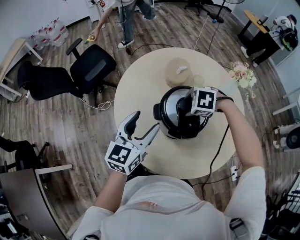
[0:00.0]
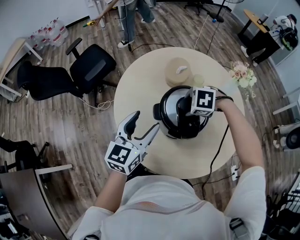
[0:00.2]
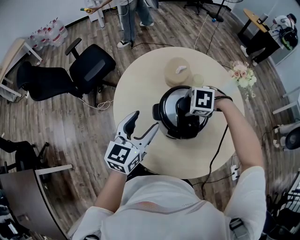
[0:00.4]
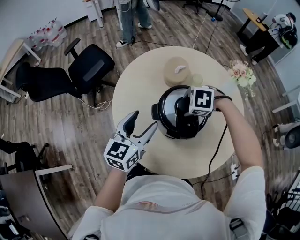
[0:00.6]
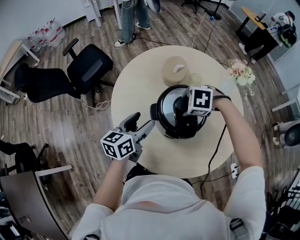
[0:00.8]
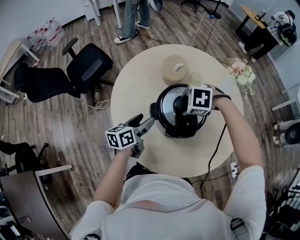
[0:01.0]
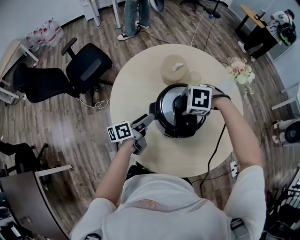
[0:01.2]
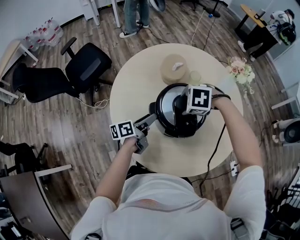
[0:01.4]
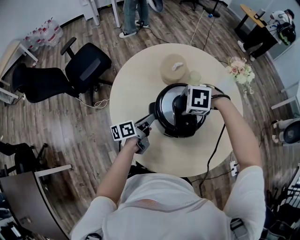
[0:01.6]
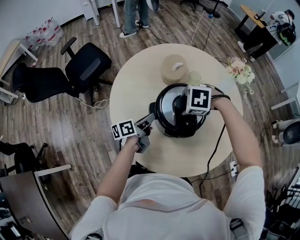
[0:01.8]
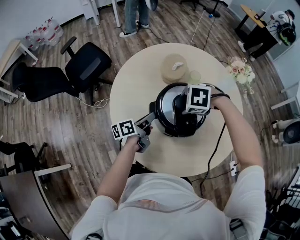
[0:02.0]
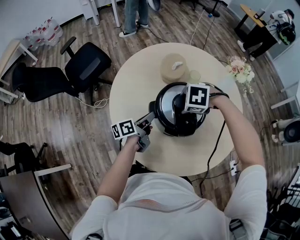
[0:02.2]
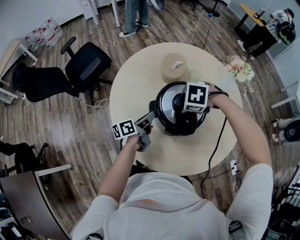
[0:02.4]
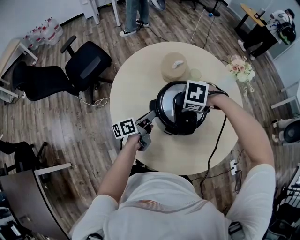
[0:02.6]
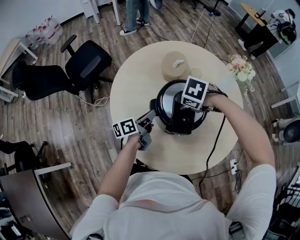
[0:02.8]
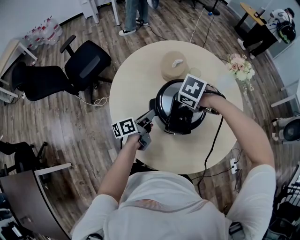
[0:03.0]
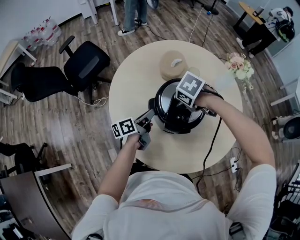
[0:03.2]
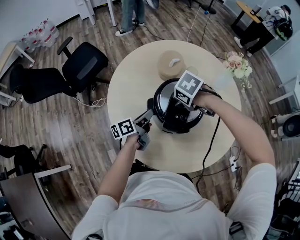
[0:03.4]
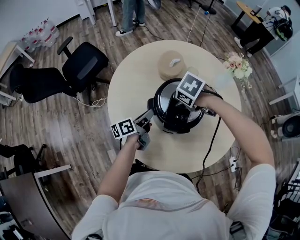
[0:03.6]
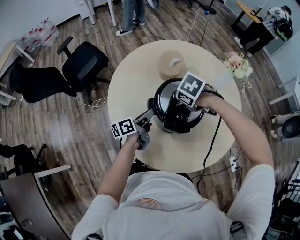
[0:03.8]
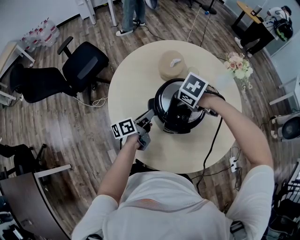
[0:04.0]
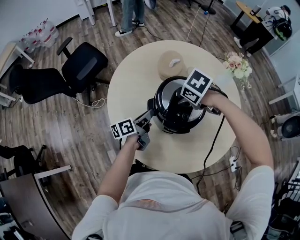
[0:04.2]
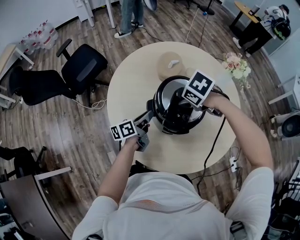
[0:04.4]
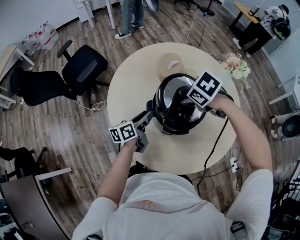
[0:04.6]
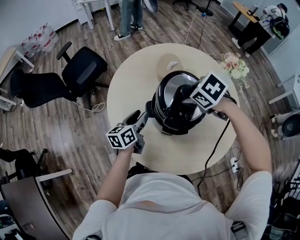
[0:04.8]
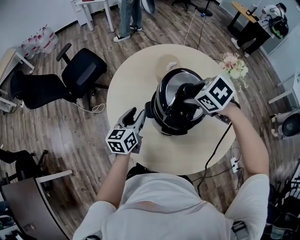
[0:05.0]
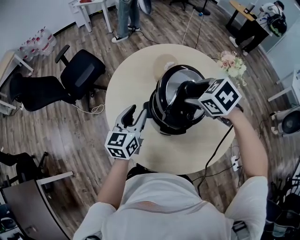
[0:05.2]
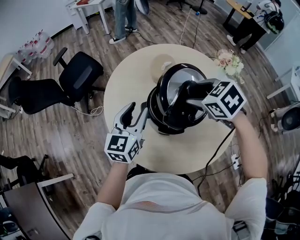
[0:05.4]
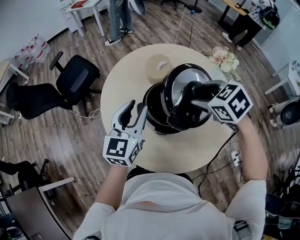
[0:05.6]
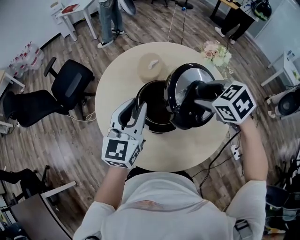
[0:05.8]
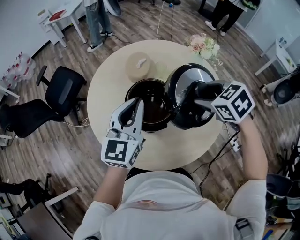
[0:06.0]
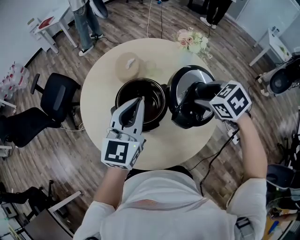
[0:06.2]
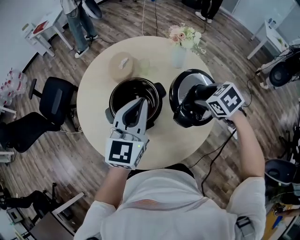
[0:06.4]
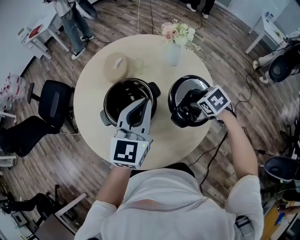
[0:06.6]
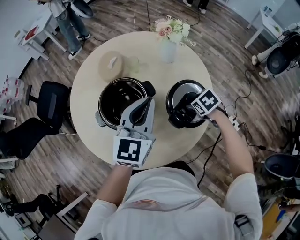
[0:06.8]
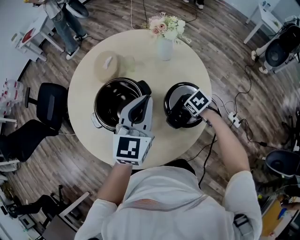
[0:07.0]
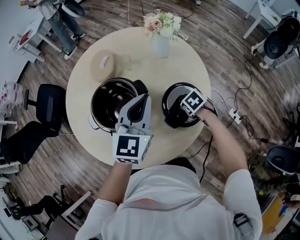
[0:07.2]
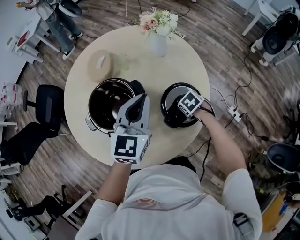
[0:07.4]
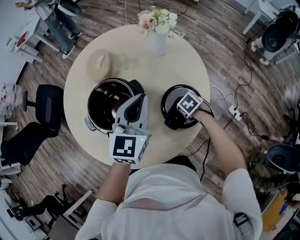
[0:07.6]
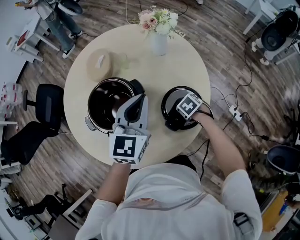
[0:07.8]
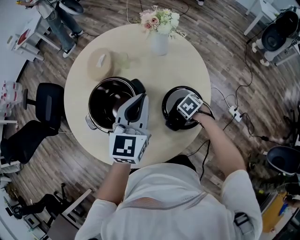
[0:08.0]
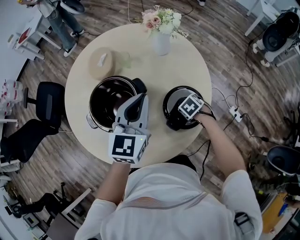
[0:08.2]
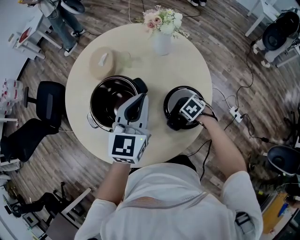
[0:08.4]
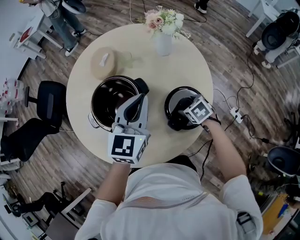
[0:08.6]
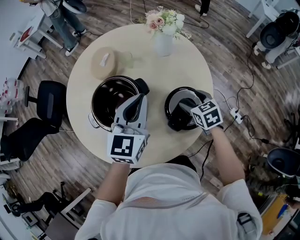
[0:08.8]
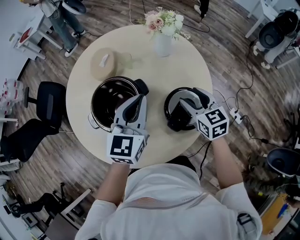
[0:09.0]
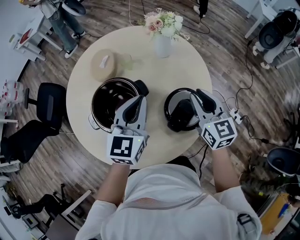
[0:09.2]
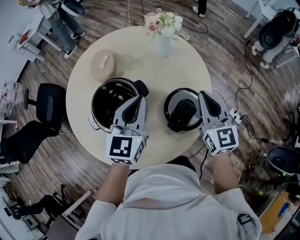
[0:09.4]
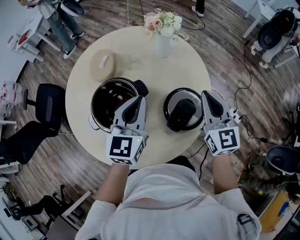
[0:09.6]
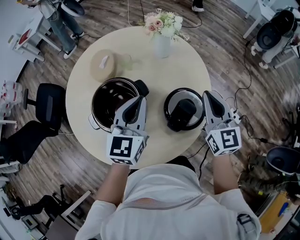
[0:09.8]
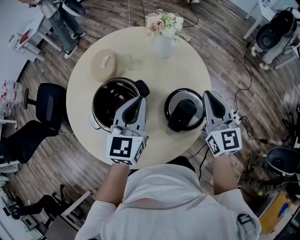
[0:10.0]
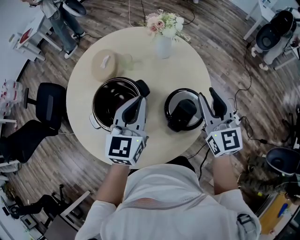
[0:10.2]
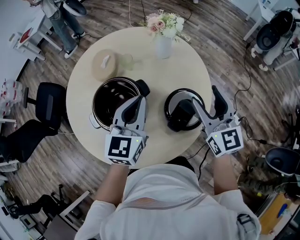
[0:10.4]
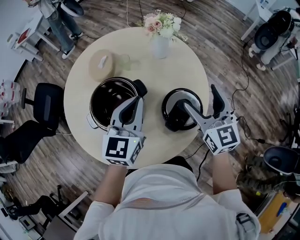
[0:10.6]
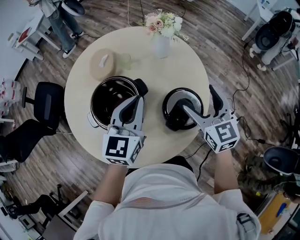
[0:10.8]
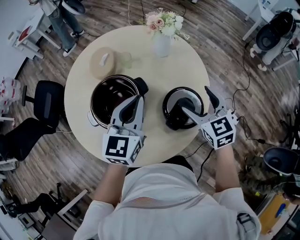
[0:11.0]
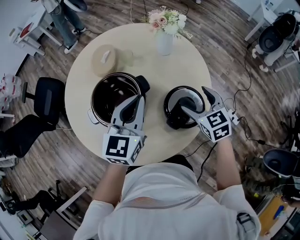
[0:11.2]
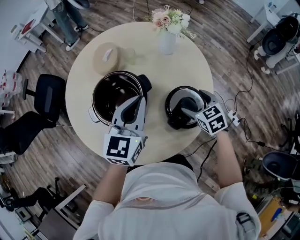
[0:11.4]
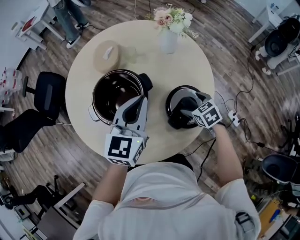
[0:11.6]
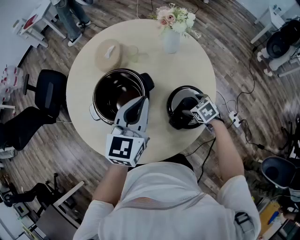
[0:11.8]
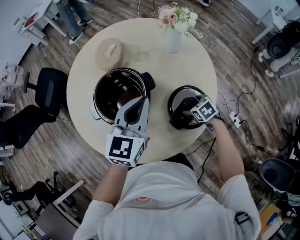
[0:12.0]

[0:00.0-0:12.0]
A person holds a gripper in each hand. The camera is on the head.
0:00.0 to 0:01.6: The left gripper shifts about 20 cm downward, rolls counterclockwise, seen from behind, by roughly 60 degrees, and closes up.
0:01.6 to 0:03.0: The right gripper changes its angle by about 20 degrees.
0:03.0 to 0:04.4: There are only small adjustments of the grippers.
0:04.4 to 0:06.0: The left gripper shifts approximately 25 cm upward, and rolls clockwise, seen from behind, by some 60 degrees, while the right gripper moves roughly 20 cm, and rotates some 30 degrees.
0:06.0 to 0:07.6: The left gripper moves about 25 cm. Meanwhile the right gripper heads downward, covering approximately 30 cm, and swivels roughly 30 degrees.
0:07.6 to 0:09.0: The right gripper moves upward, about 20 cm, and angles its fingers upward, by about 50 degrees.
0:09.0 to 0:10.4: The right gripper moves upward, roughly 15 cm, turns by roughly 30 degrees, and closes, then reopens.
0:10.4 to 0:12.0: The right gripper shifts about 30 cm downward, and points its fingers approximately 60 degrees further downward.

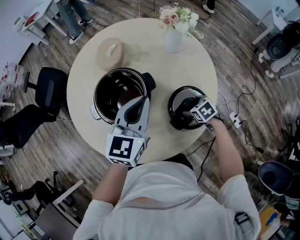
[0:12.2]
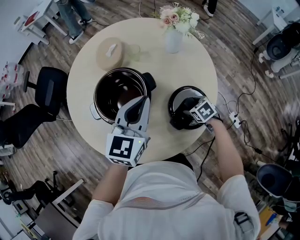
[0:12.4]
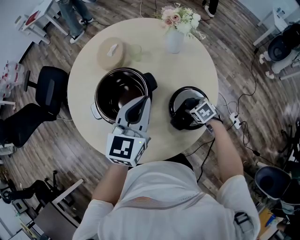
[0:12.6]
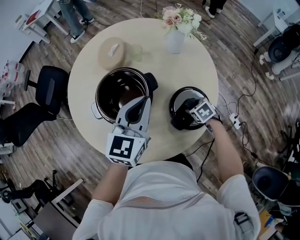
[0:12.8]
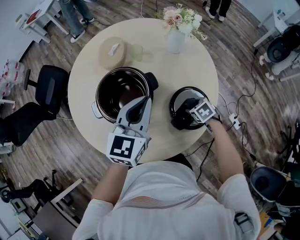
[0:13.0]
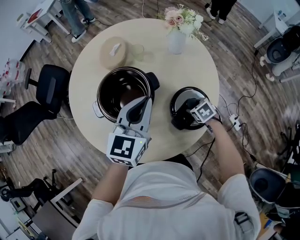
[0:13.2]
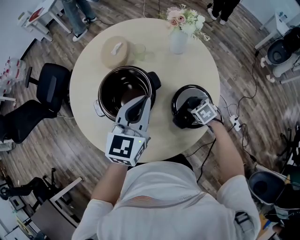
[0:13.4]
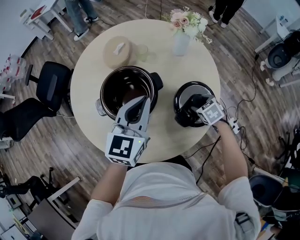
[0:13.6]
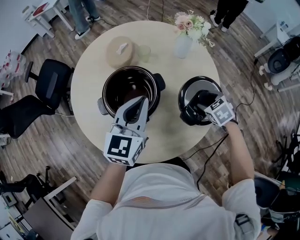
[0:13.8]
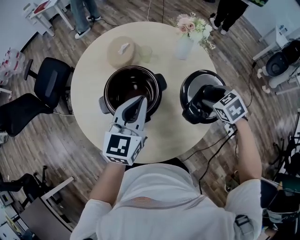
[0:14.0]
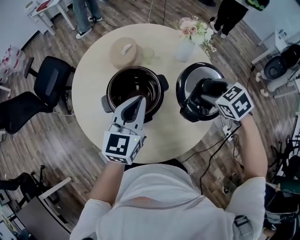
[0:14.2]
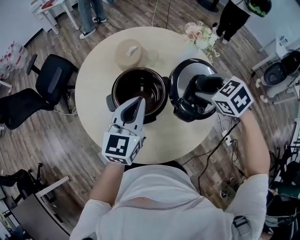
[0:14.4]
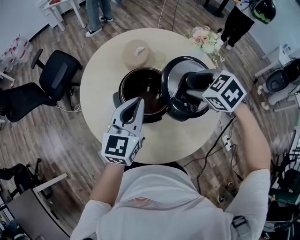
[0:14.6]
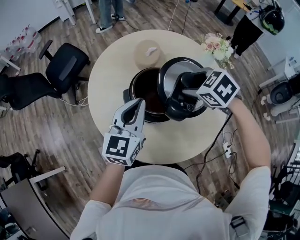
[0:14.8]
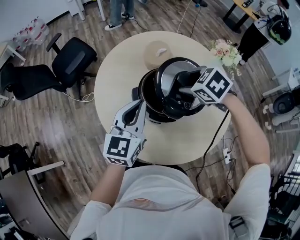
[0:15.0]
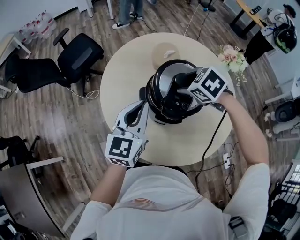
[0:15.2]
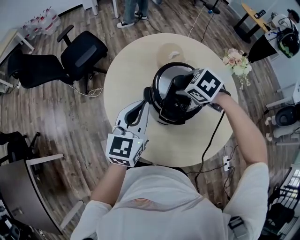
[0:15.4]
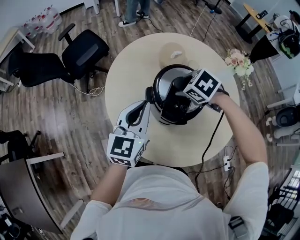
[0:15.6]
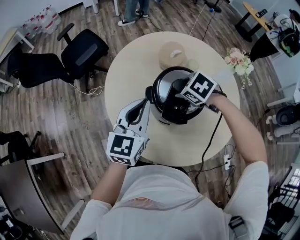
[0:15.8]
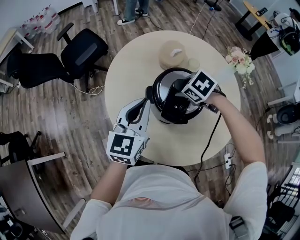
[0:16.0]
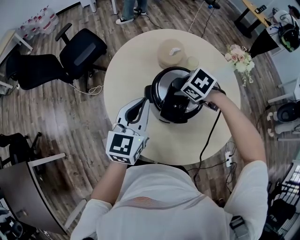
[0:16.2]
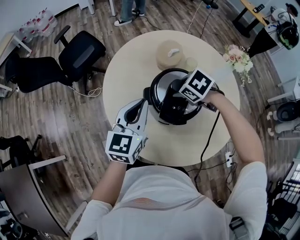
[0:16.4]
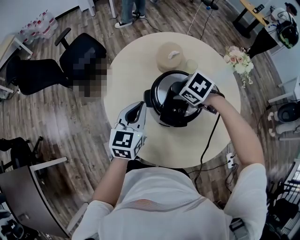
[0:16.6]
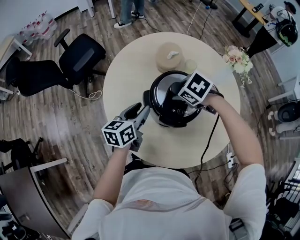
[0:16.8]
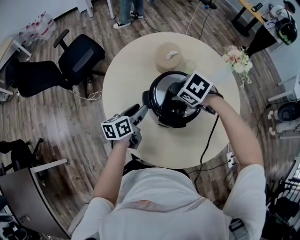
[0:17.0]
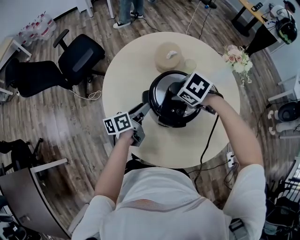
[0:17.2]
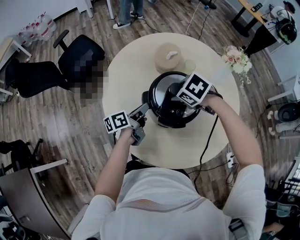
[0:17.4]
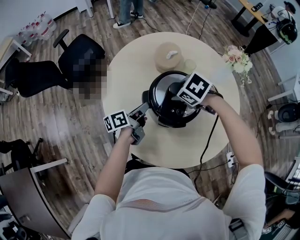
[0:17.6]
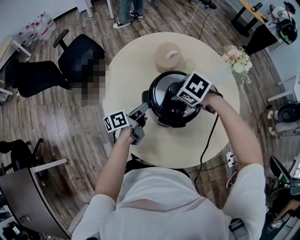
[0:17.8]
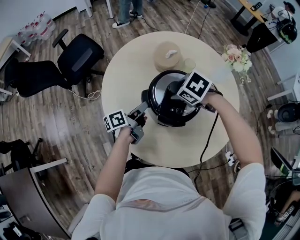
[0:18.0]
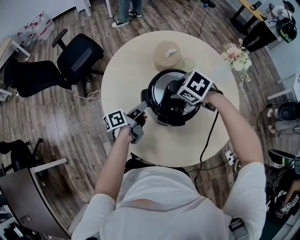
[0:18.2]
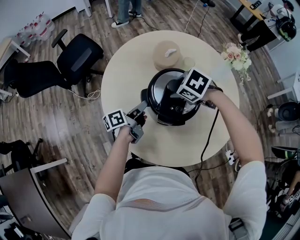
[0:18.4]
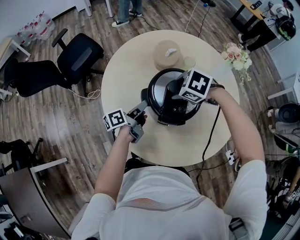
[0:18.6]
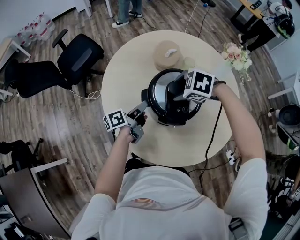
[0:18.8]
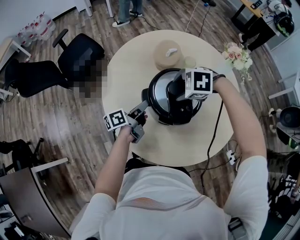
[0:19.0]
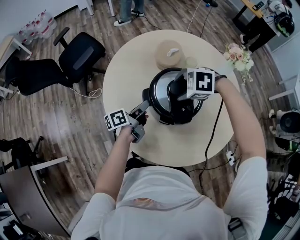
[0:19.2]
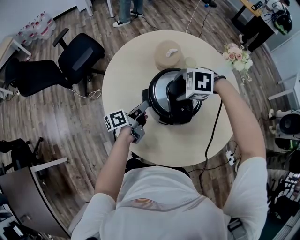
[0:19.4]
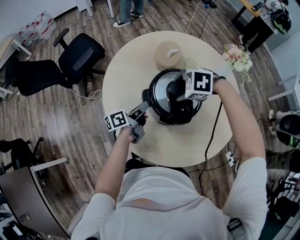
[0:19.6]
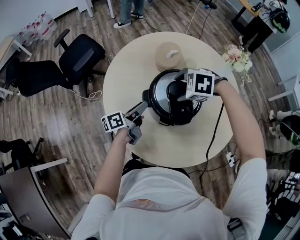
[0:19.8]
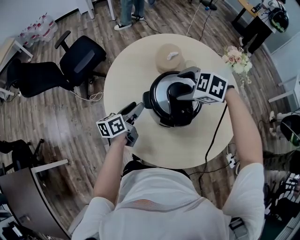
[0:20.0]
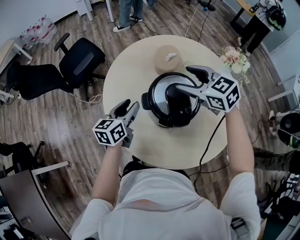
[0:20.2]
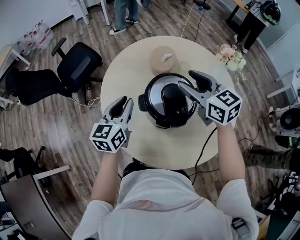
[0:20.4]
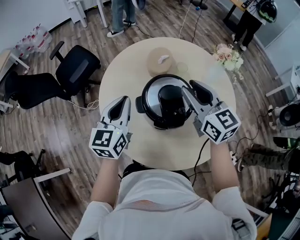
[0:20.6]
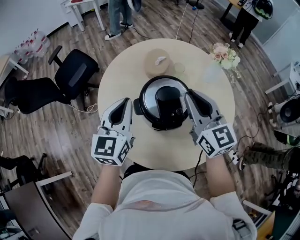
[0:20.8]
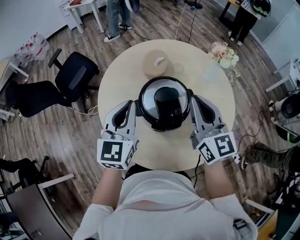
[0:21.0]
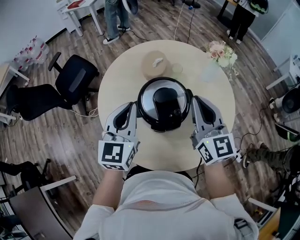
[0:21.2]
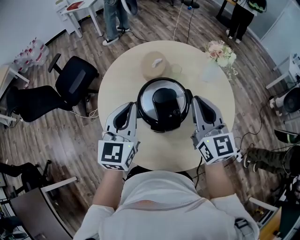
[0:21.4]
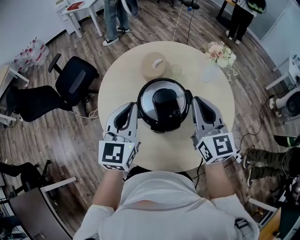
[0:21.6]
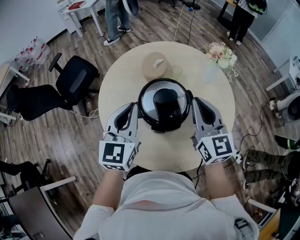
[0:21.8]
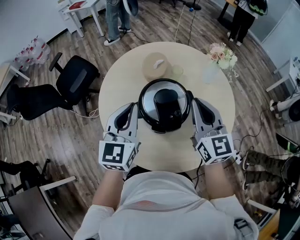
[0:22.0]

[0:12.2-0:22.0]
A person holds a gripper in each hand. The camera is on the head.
0:12.2 to 0:13.6: The right gripper is displaced upward by approximately 5 cm, and closes.
0:13.6 to 0:15.0: The right gripper shifts by about 35 cm, and rotates roughly 30 degrees; the left gripper moves about 20 cm.
0:15.0 to 0:16.4: The right gripper heads downward and to the left, covering approximately 10 cm.
0:16.4 to 0:17.8: The left gripper travels downward by about 15 cm, and twists roughly 60 degrees counterclockwise, seen from behind.
0:17.8 to 0:19.2: The right gripper turns by roughly 30 degrees.
0:19.2 to 0:20.6: The two grippers go about 20 cm upward. The right gripper tilts its fingers approximately 60 degrees upward; the left gripper twists roughly 60 degrees clockwise, seen from behind, and opens and closes again.
0:20.6 to 0:22.0: The left gripper changes place by about 5 cm; the right gripper moves some 5 cm.

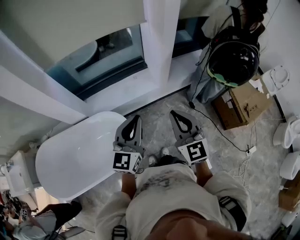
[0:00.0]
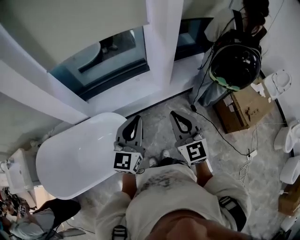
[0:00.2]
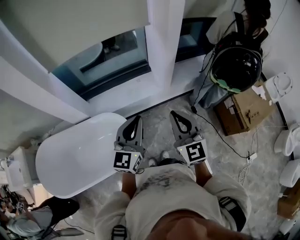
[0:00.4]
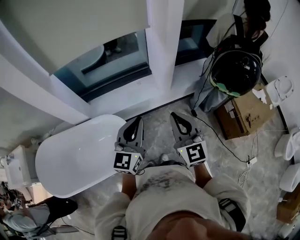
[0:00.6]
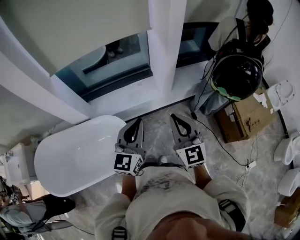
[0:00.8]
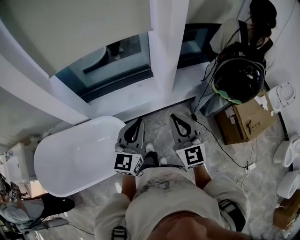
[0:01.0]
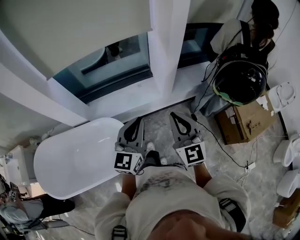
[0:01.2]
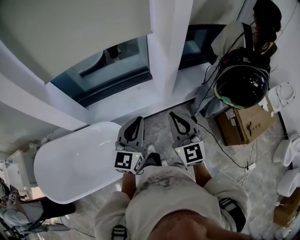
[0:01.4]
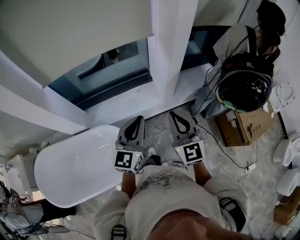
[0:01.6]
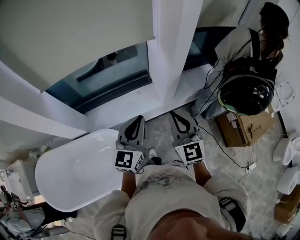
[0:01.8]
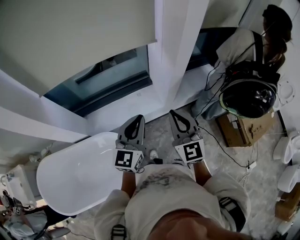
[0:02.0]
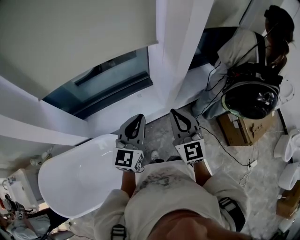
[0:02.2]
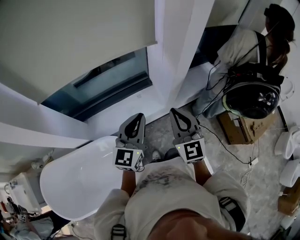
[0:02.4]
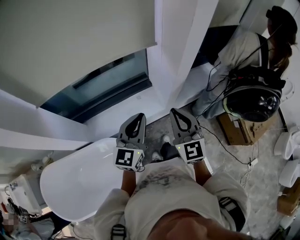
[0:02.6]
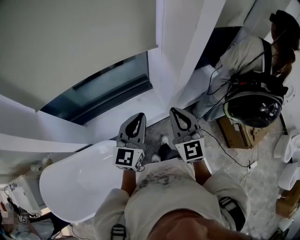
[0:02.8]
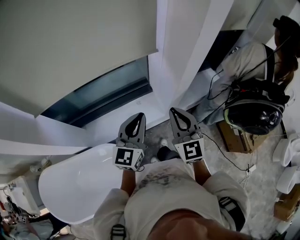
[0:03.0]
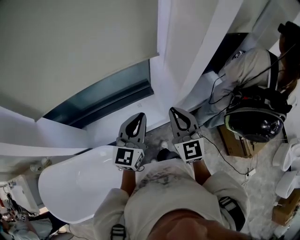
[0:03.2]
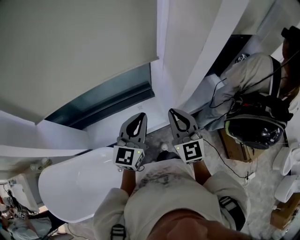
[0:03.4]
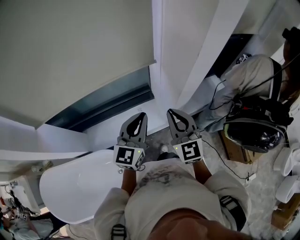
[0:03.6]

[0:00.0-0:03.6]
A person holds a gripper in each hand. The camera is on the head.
0:00.0 to 0:01.8: Both grippers travel together forward, approximately 20 cm.
0:01.8 to 0:03.6: The grippers both shift forward by about 25 cm.
